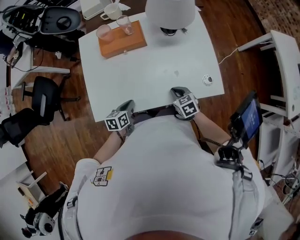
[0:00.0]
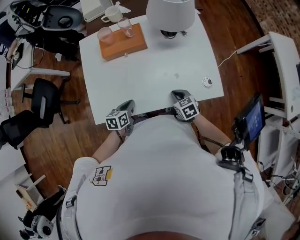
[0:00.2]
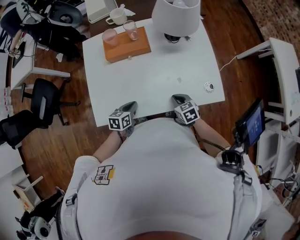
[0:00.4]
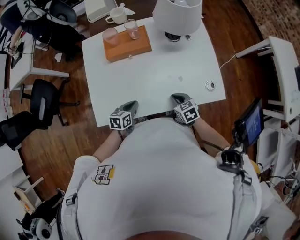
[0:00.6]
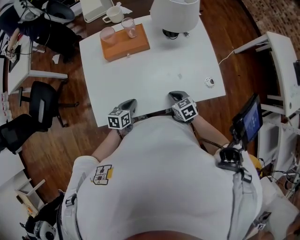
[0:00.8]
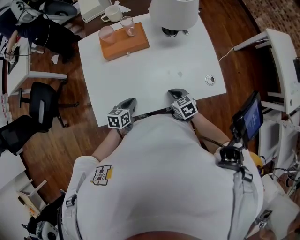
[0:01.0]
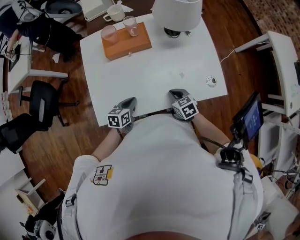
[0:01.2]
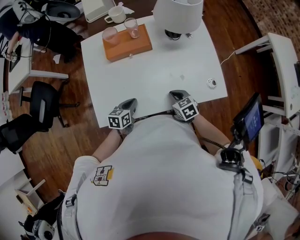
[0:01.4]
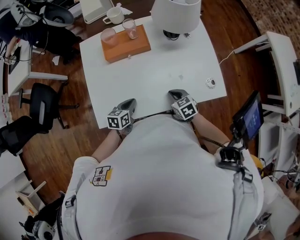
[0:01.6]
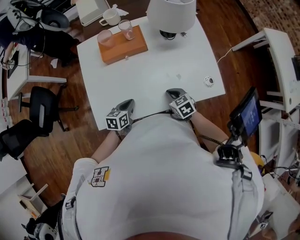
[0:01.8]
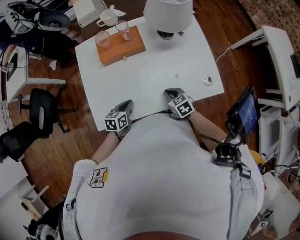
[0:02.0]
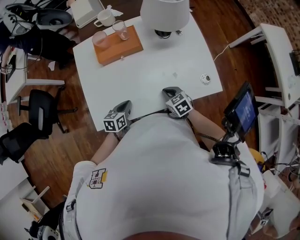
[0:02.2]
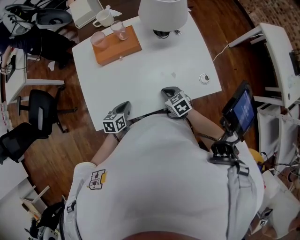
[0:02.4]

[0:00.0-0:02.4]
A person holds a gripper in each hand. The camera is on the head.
0:00.0 to 0:01.2: The grippers move only a little.
0:01.2 to 0:02.4: The two grippers keep their place.

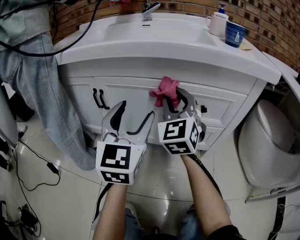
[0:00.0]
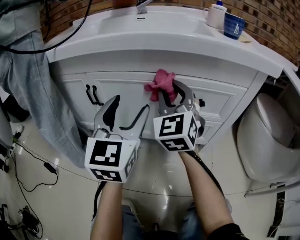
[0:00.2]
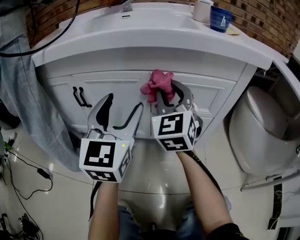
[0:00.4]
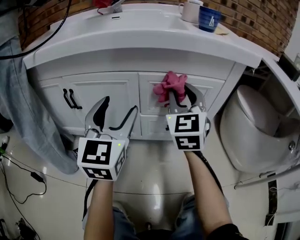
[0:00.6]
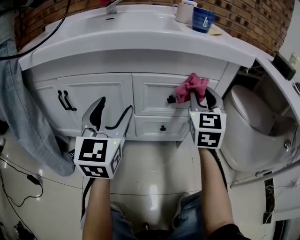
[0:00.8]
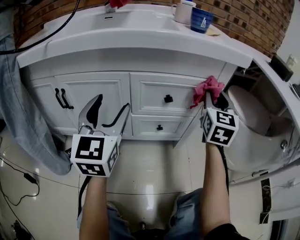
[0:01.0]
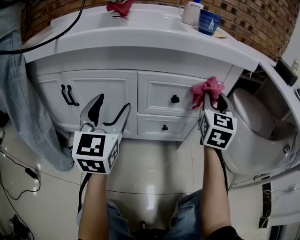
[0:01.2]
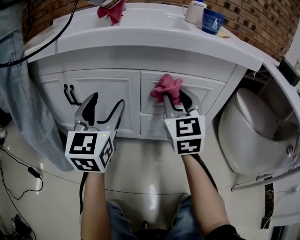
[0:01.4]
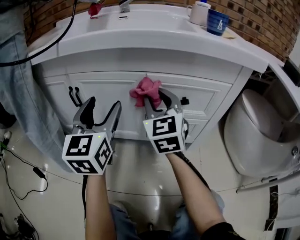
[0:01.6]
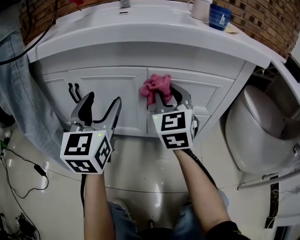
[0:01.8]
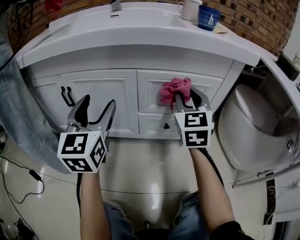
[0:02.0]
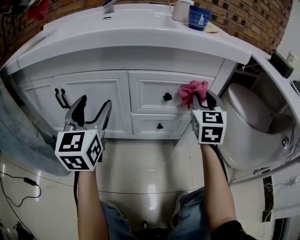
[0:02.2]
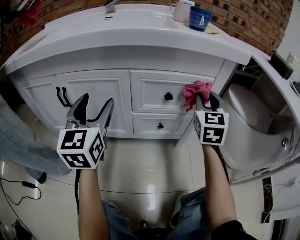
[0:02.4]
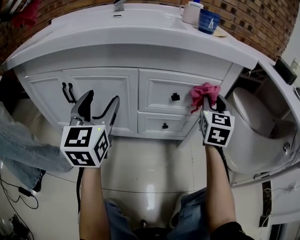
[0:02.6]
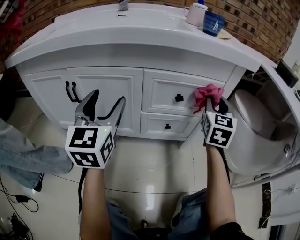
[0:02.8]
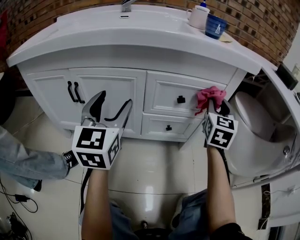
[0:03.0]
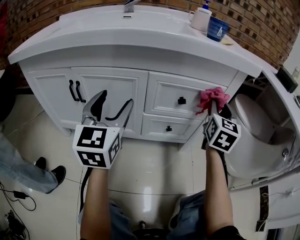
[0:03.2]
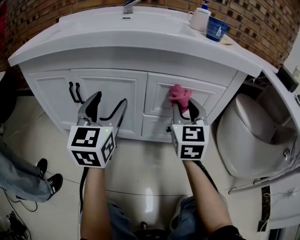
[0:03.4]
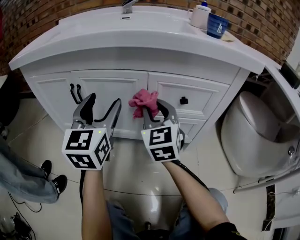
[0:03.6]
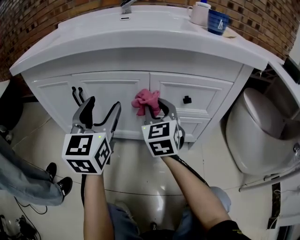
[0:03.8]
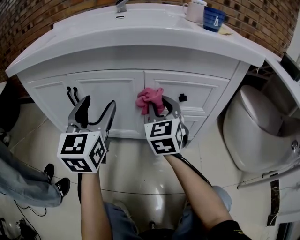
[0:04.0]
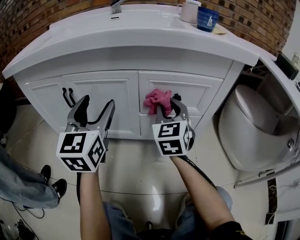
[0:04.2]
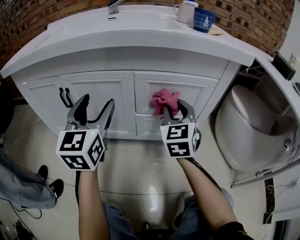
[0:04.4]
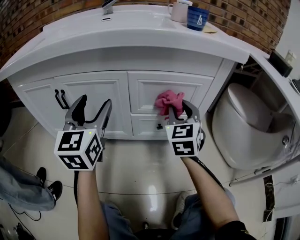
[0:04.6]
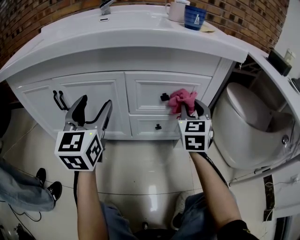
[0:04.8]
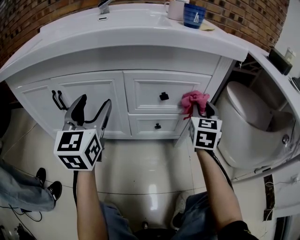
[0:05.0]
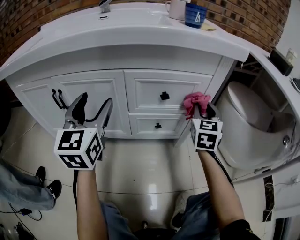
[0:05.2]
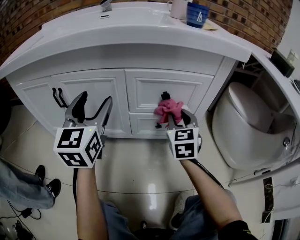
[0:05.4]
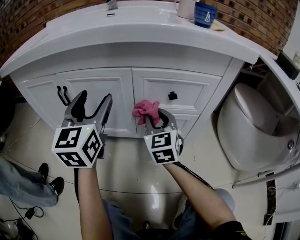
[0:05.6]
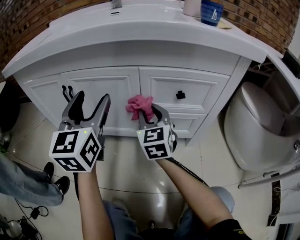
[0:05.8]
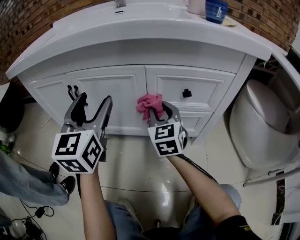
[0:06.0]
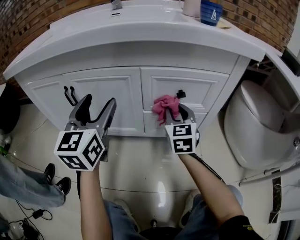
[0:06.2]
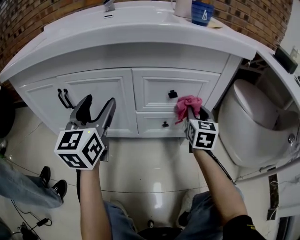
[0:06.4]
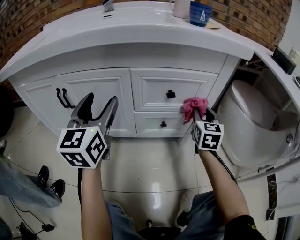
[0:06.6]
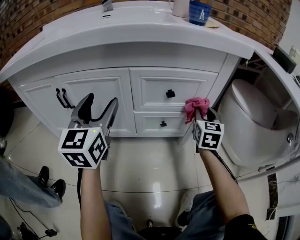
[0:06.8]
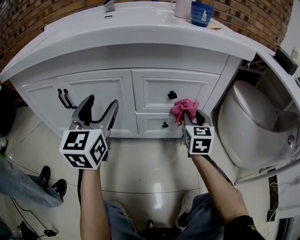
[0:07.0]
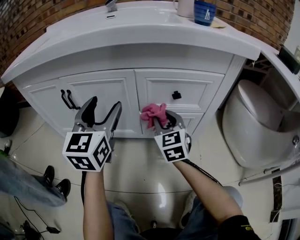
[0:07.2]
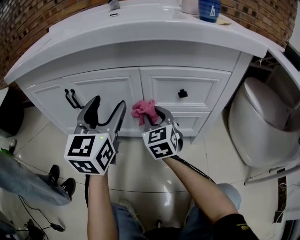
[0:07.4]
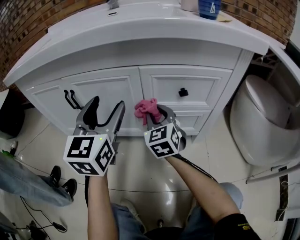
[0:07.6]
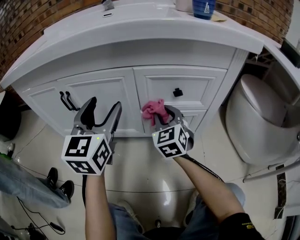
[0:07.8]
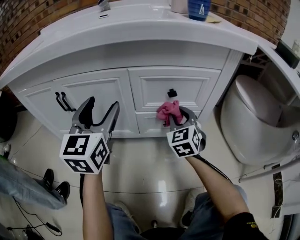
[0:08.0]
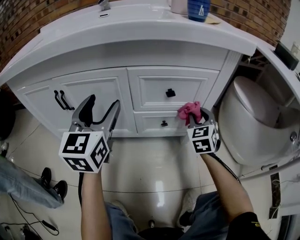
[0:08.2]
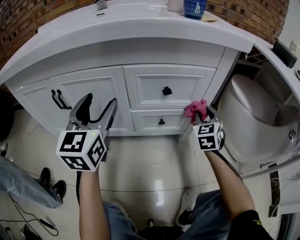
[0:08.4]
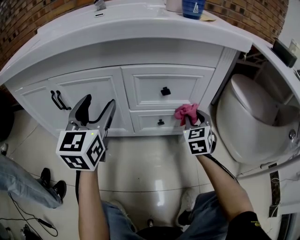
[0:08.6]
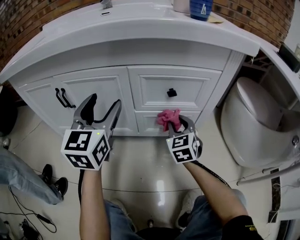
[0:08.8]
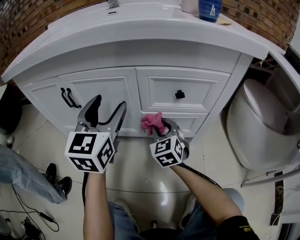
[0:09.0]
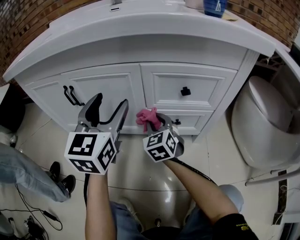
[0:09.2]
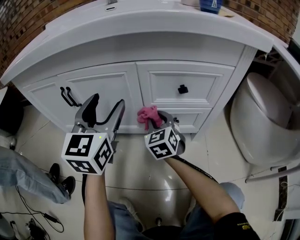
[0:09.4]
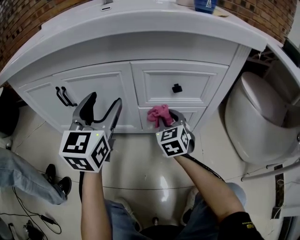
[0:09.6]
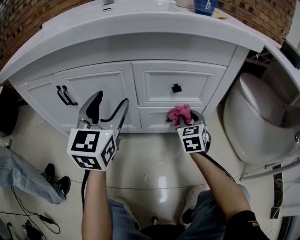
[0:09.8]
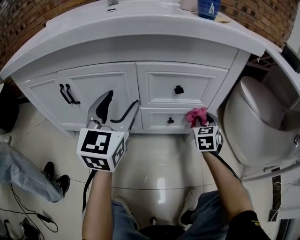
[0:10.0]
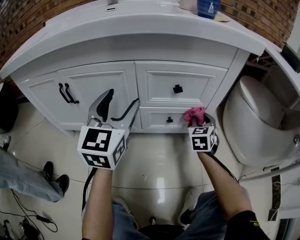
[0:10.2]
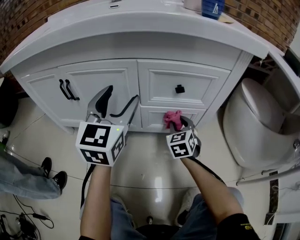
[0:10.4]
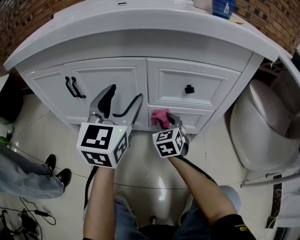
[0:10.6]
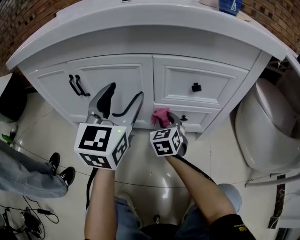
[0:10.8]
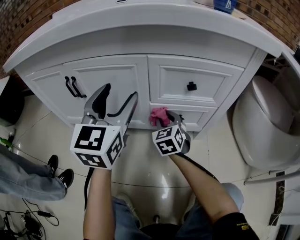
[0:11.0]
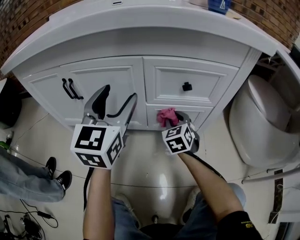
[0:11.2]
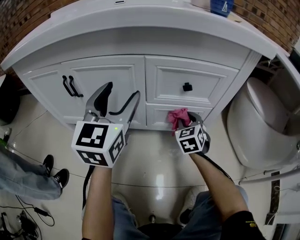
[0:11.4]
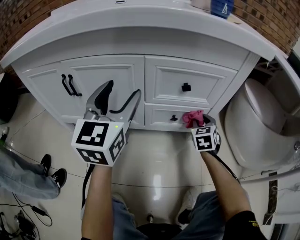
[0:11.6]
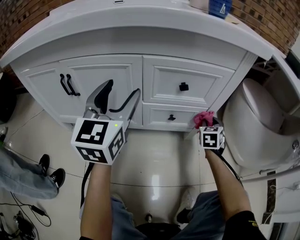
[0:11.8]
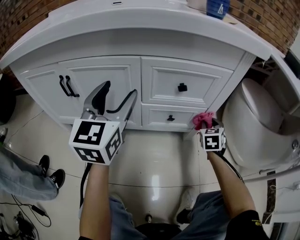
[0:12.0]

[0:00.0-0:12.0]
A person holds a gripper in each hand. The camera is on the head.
0:00.0 to 0:01.6: The left gripper shifts by approximately 5 cm. The right gripper reaches approximately 25 cm to the right, then returns.
0:01.6 to 0:03.0: The right gripper moves to the right, roughly 25 cm, and swivels roughly 30 degrees.
0:03.0 to 0:04.4: The right gripper heads to the left, covering roughly 15 cm.
0:04.4 to 0:06.0: The right gripper travels downward by roughly 5 cm, and goes to the right and returns, about 15 cm each way.
0:06.0 to 0:07.6: The right gripper goes to the right and returns, some 25 cm each way.
0:07.6 to 0:09.0: The right gripper heads downward, covering roughly 5 cm, and reaches about 25 cm to the right, then returns.
0:09.0 to 0:10.4: The right gripper moves left and right over roughly 25 cm, changing direction 2 times.
0:10.4 to 0:12.0: The right gripper is displaced to the right by approximately 15 cm.

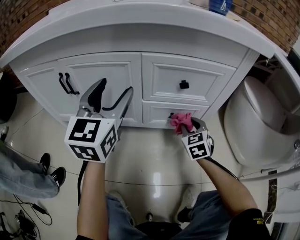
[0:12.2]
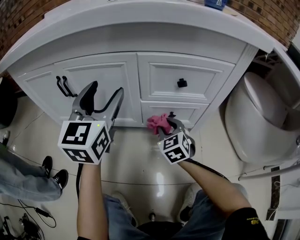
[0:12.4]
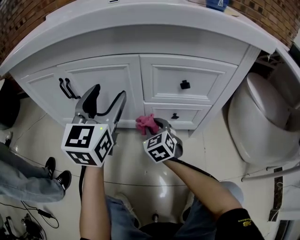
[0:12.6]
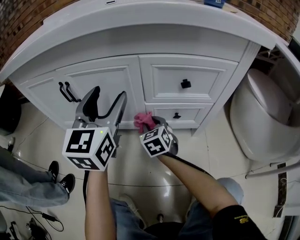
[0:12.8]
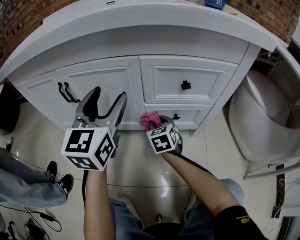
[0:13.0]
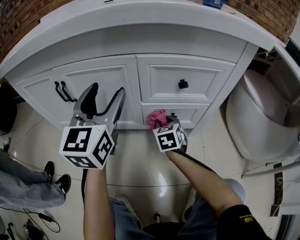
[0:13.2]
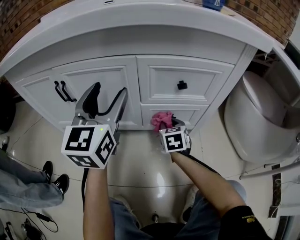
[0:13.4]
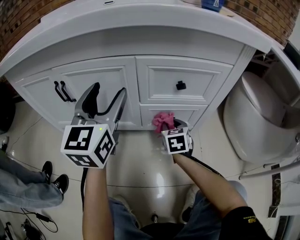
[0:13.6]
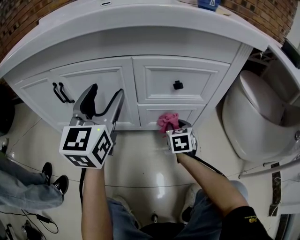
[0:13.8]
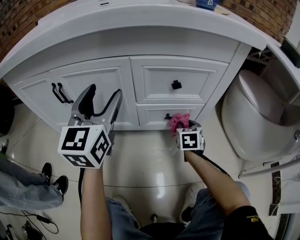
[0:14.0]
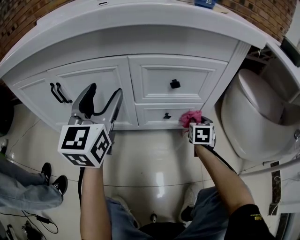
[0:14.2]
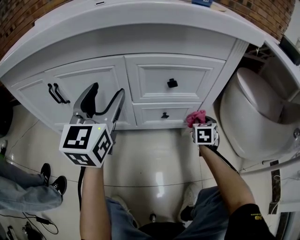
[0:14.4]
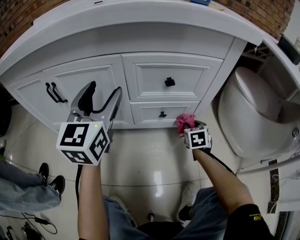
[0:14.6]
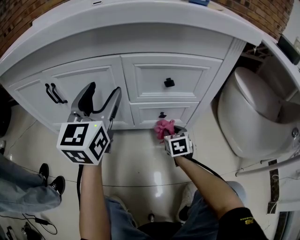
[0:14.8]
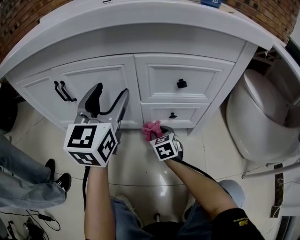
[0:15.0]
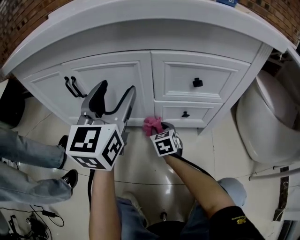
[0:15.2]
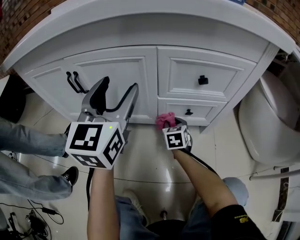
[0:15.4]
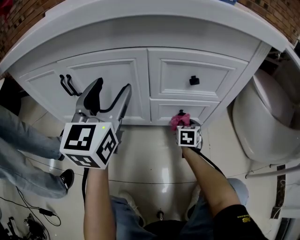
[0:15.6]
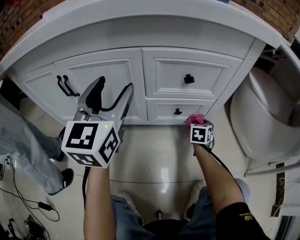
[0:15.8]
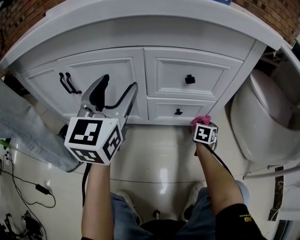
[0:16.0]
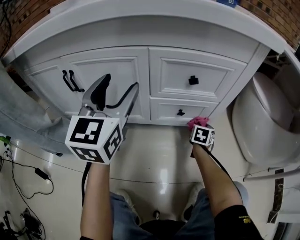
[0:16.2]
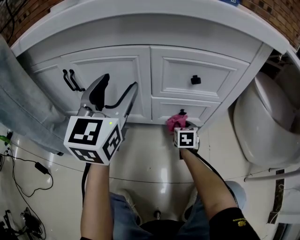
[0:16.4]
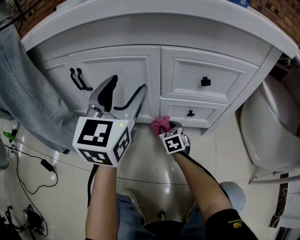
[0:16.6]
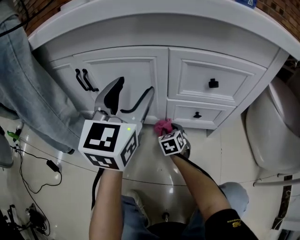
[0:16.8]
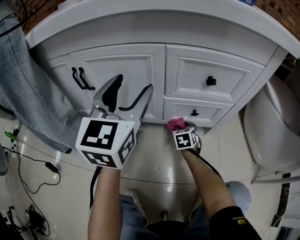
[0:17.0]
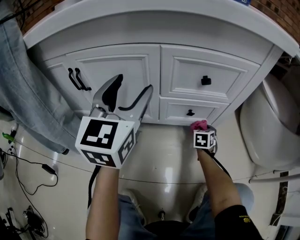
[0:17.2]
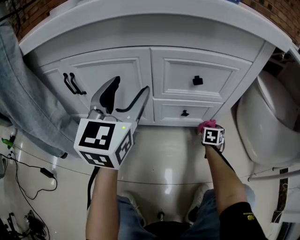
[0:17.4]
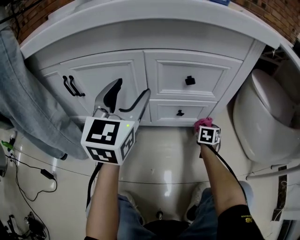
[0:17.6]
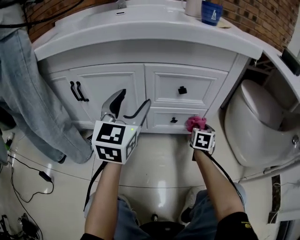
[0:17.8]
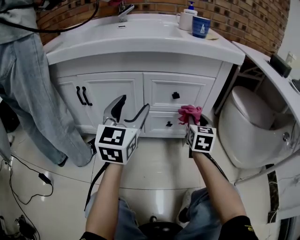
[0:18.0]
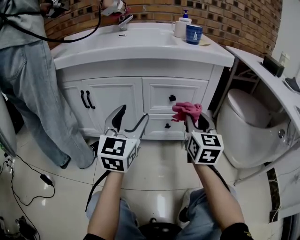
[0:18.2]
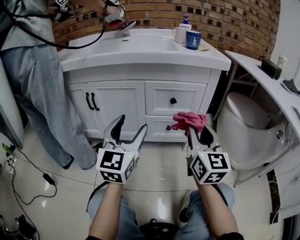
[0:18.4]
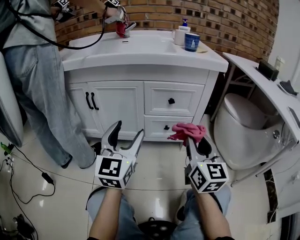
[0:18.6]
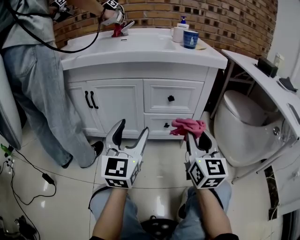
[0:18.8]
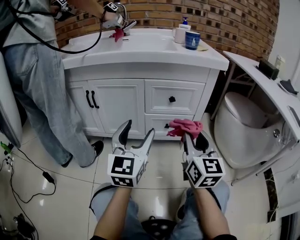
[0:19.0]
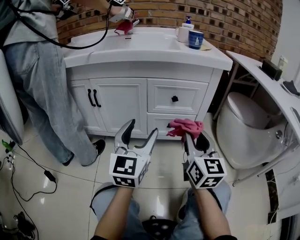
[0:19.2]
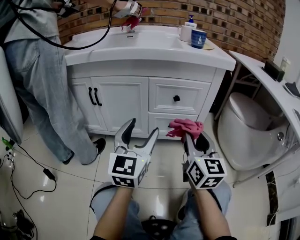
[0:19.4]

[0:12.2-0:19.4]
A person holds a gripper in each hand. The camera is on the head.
0:12.2 to 0:13.6: The right gripper travels to the left by about 5 cm.
0:13.6 to 0:15.0: The right gripper goes about 5 cm downward, and goes to the right and returns, some 20 cm each way.
0:16.6 to 0:18.0: The right gripper is displaced upward by roughly 25 cm, and swivels about 40 degrees. Meanwhile the left gripper shifts by some 10 cm.
0:18.0 to 0:19.4: The left gripper heads backward, covering approximately 10 cm, while the right gripper heads backward and upward, covering some 20 cm, and rotates about 20 degrees.

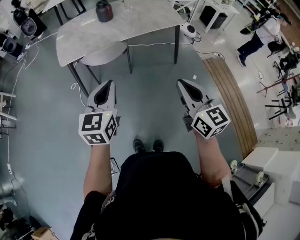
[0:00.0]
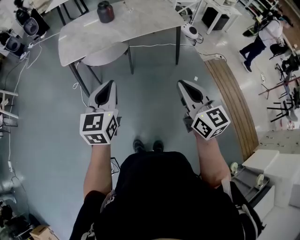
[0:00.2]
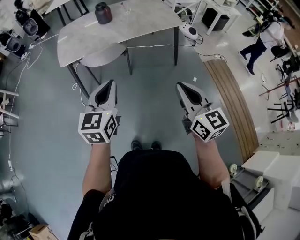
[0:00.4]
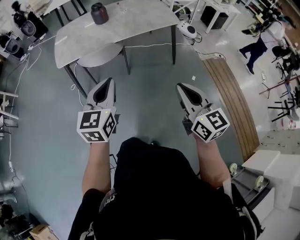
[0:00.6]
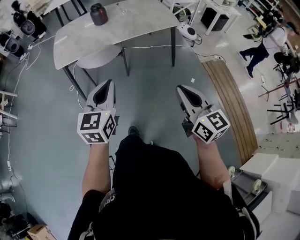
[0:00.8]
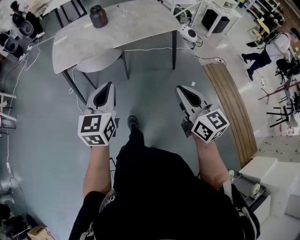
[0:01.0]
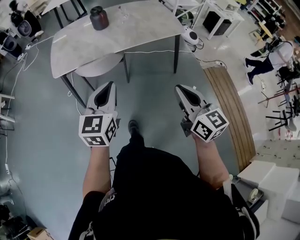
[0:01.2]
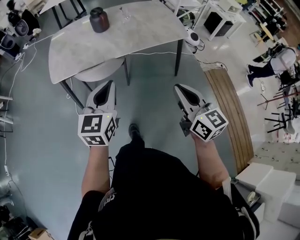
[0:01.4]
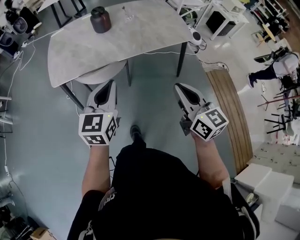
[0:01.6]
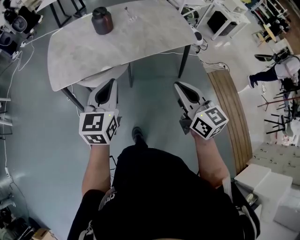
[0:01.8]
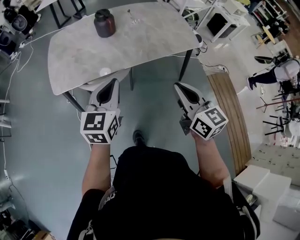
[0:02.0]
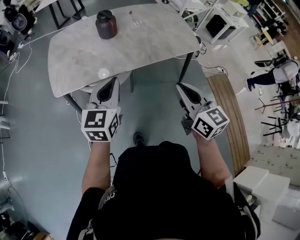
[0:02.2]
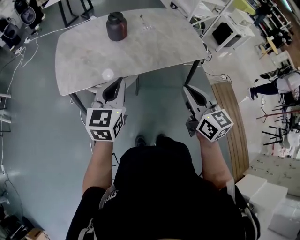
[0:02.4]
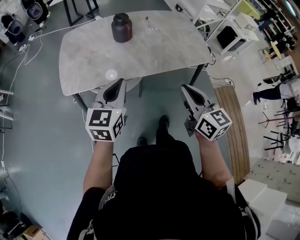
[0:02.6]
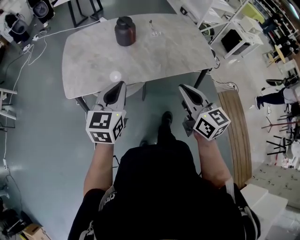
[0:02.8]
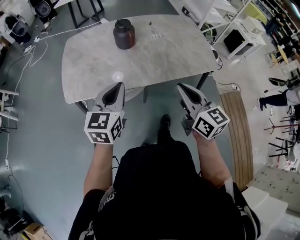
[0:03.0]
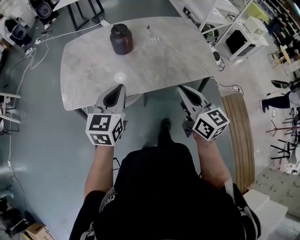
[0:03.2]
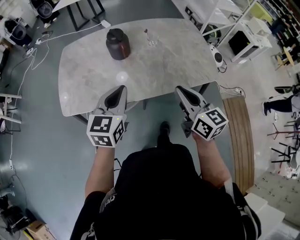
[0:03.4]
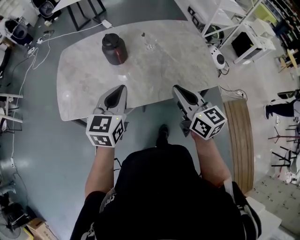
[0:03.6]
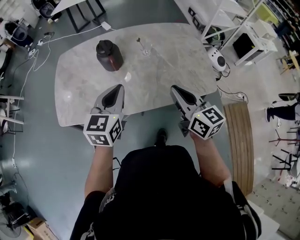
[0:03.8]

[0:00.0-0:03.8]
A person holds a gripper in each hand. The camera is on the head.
0:00.0 to 0:01.2: Both grippers travel together forward and to the right, roughly 10 cm.
0:01.2 to 0:02.6: Both grippers move forward, approximately 25 cm.
0:02.6 to 0:03.8: The two grippers go roughly 25 cm forward and to the right.
